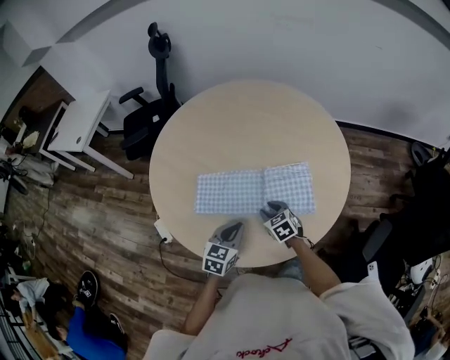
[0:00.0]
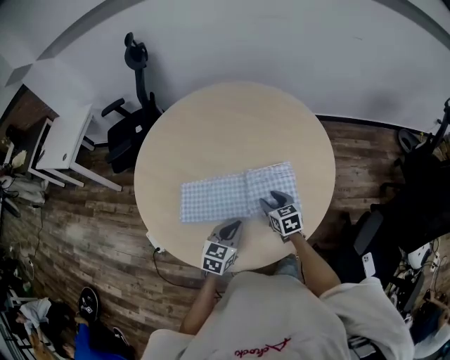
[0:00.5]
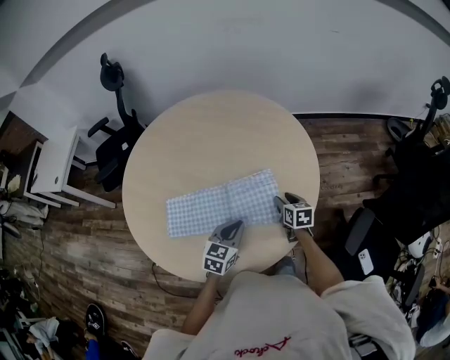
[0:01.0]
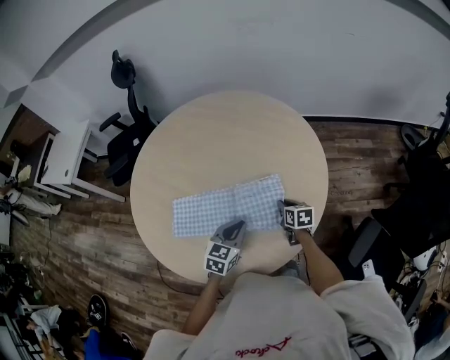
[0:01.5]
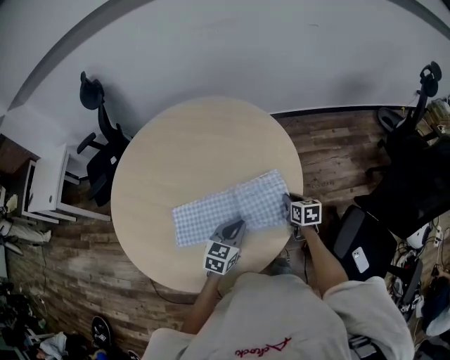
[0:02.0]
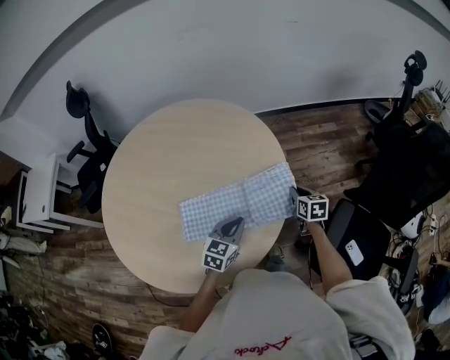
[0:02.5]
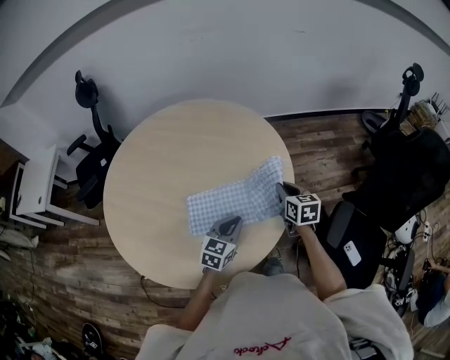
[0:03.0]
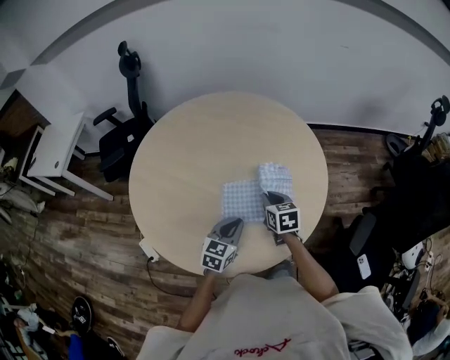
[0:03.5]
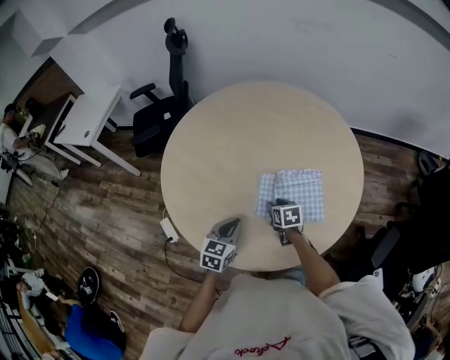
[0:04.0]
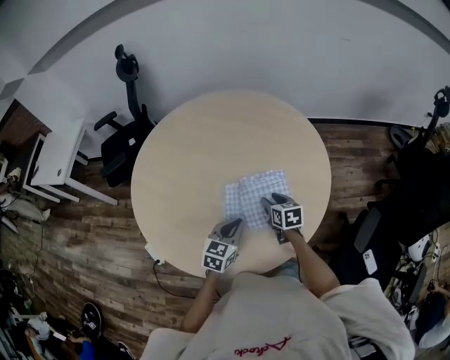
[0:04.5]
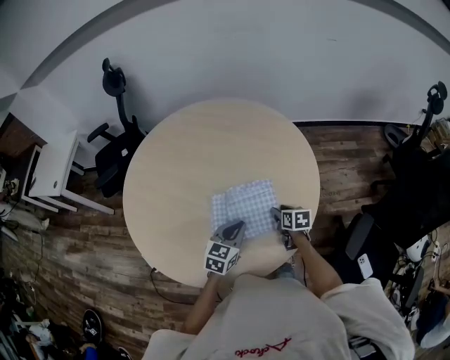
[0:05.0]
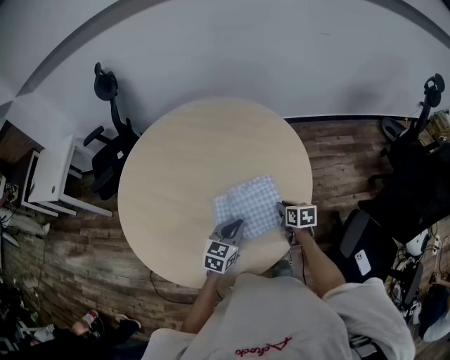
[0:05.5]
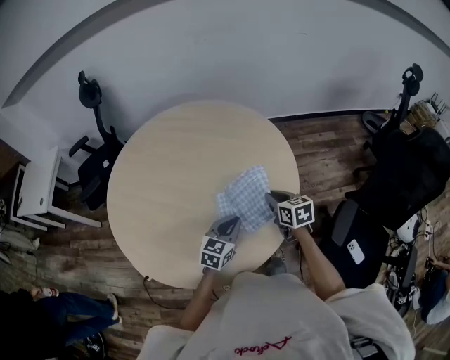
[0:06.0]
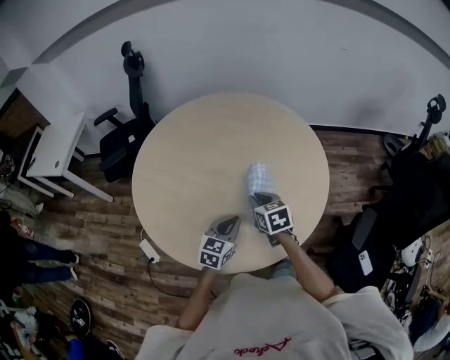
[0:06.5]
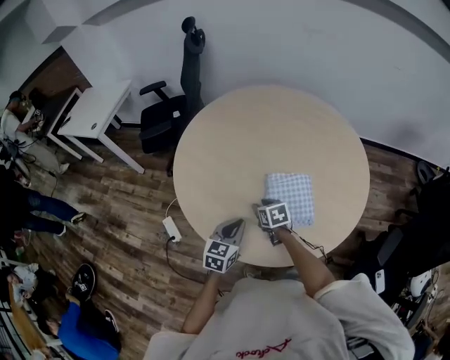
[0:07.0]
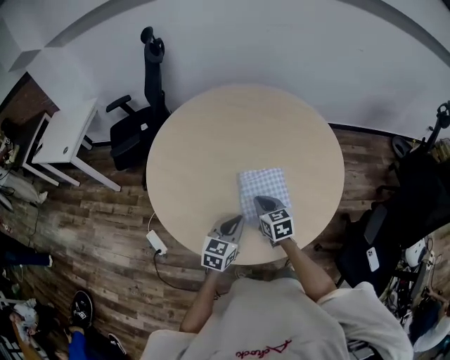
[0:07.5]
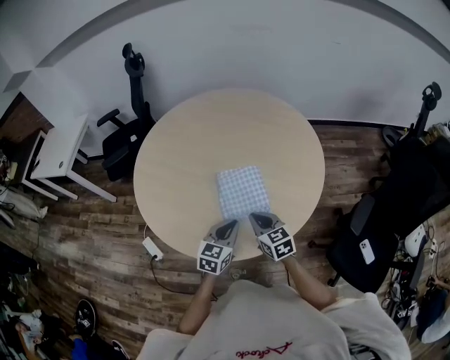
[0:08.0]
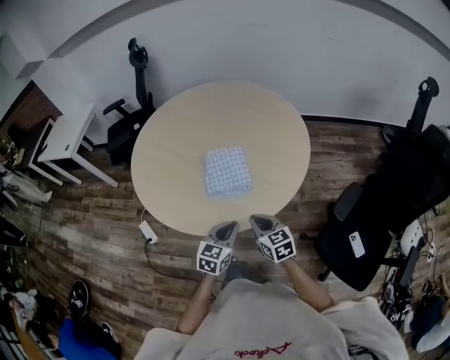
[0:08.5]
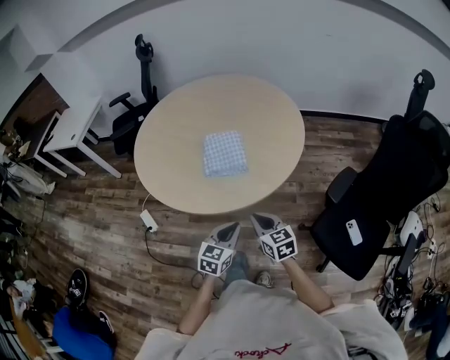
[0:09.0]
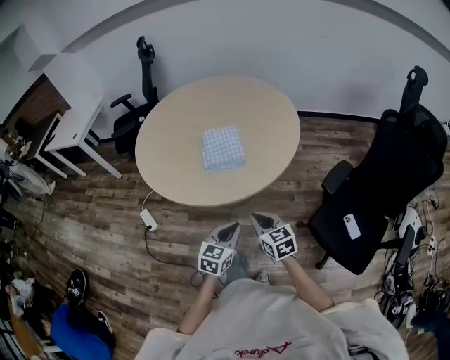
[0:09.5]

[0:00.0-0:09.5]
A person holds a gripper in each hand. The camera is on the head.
0:00.0 to 0:02.0: The left gripper goes about 20 cm to the right and forward. The right gripper is displaced to the right by roughly 30 cm, and rotates around the line of its fingers by approximately 40 degrees, clockwise from behind.
0:02.0 to 0:04.0: The right gripper travels upward and back again, about 10 cm each way, turns by about 20 degrees, and opens, while the left gripper moves approximately 25 cm.
0:04.0 to 0:05.5: Both grippers travel together to the right, approximately 20 cm. The right gripper closes.
0:05.5 to 0:07.5: The left gripper travels to the left and backward by approximately 20 cm. Meanwhile the right gripper shifts about 30 cm to the left, rotates roughly 30 degrees, and opens, then closes once more.
0:07.5 to 0:09.5: Both grippers move backward and to the right, roughly 35 cm.

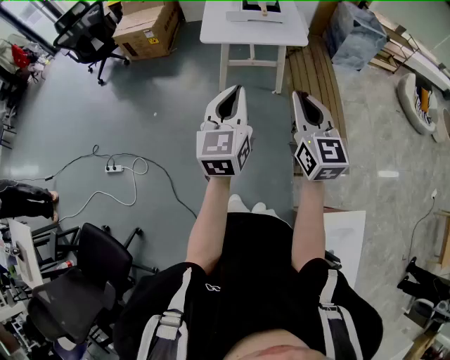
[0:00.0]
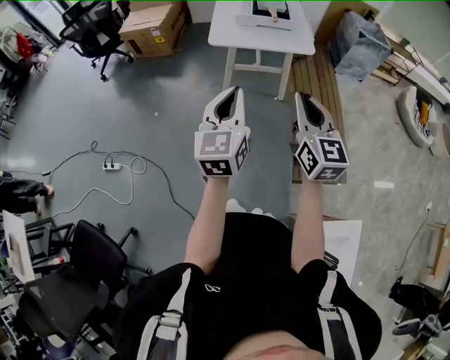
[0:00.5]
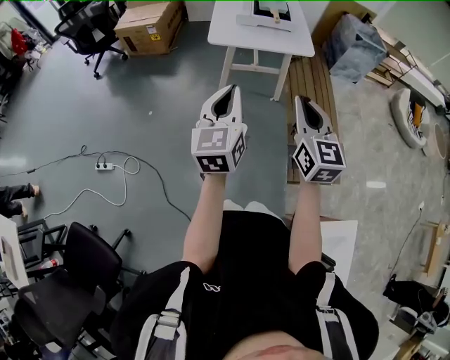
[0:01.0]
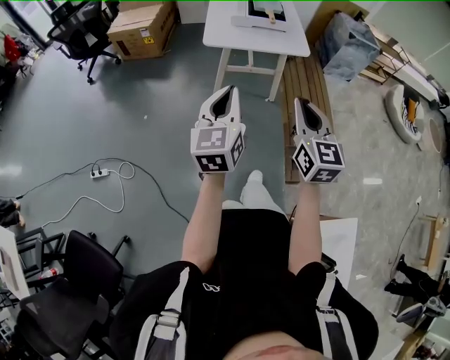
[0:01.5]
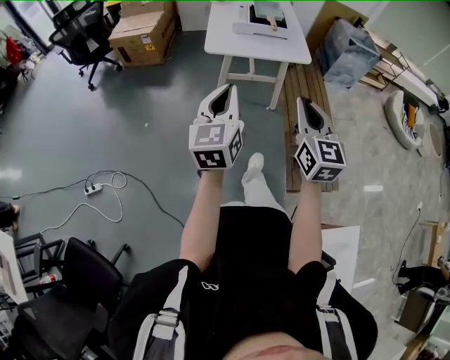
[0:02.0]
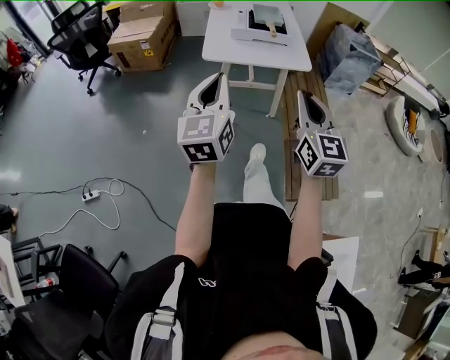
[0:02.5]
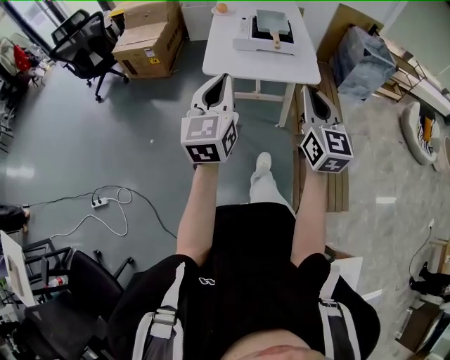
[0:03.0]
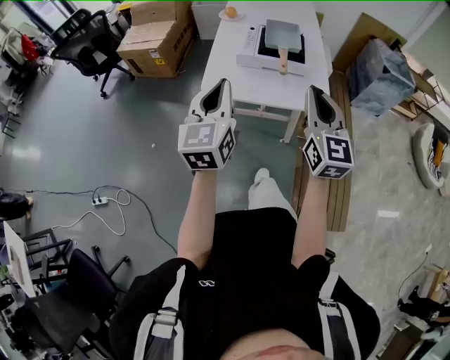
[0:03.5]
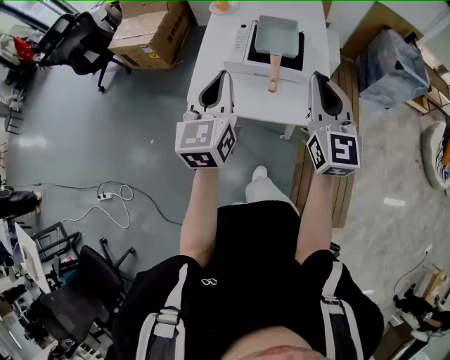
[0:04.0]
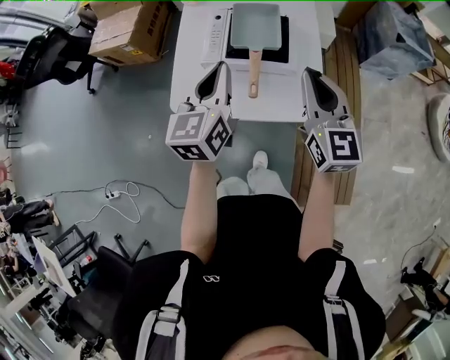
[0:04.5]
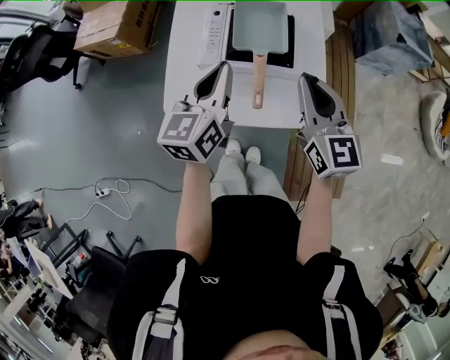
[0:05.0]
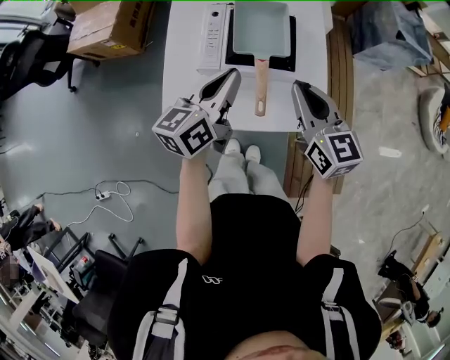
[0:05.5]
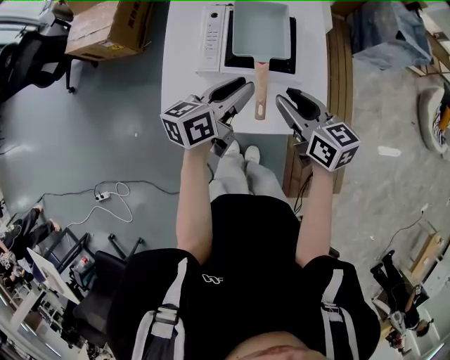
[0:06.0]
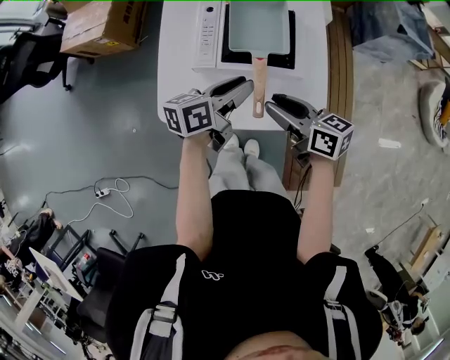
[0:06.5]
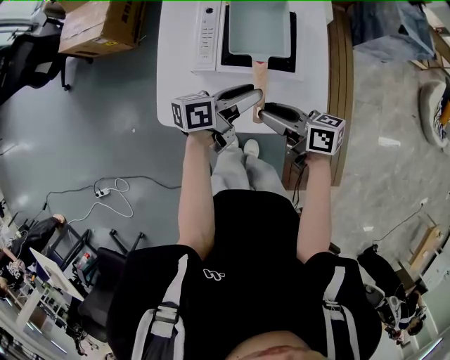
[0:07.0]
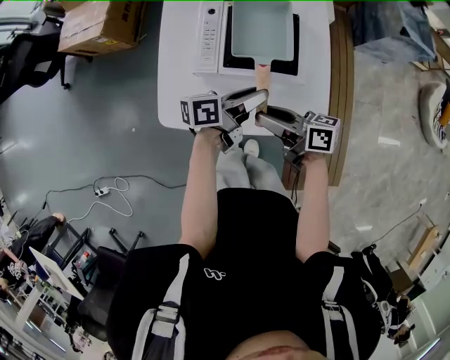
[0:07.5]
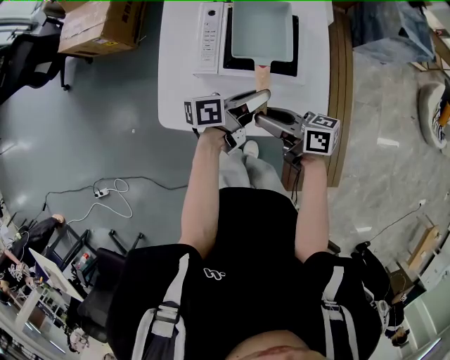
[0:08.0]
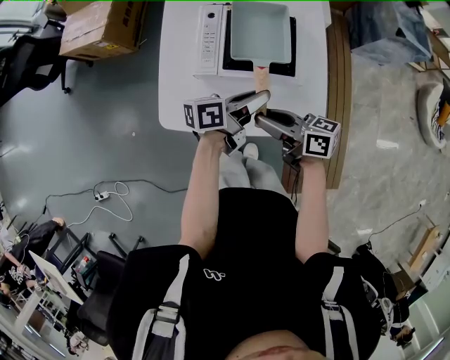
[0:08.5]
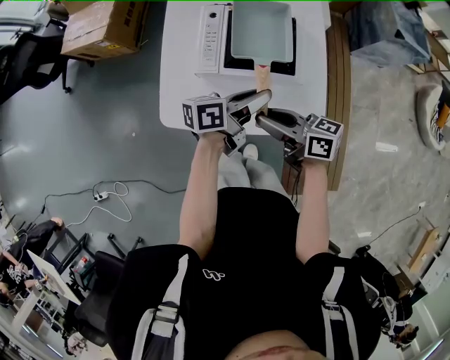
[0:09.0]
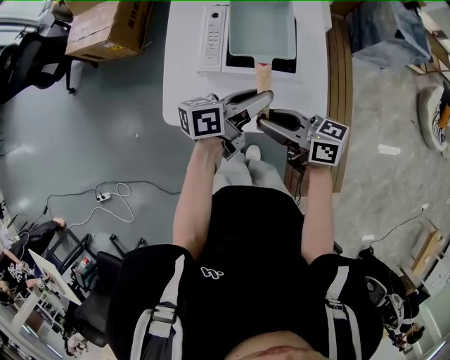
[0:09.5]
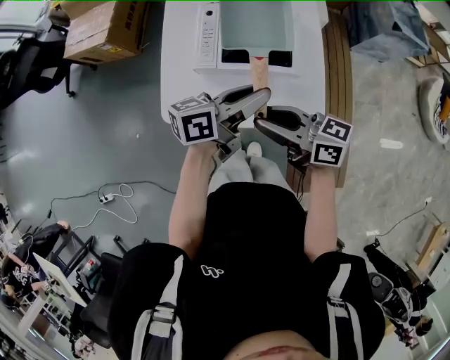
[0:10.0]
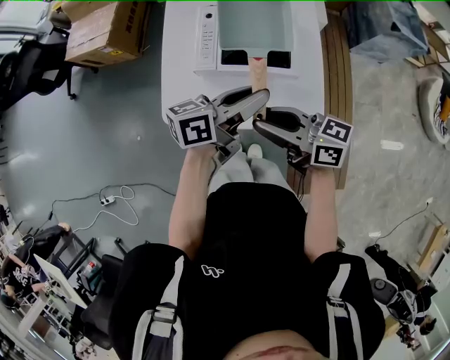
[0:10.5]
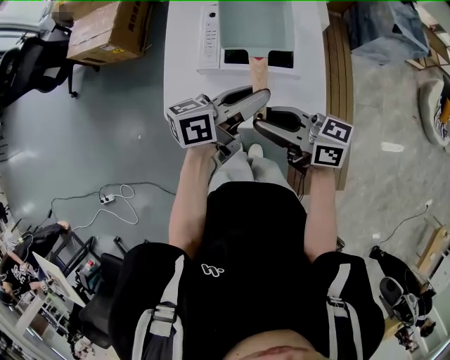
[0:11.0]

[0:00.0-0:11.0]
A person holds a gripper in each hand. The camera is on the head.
0:00.0 to 0:02.0: The left gripper travels to the left and forward by some 10 cm; the right gripper moves forward, roughly 5 cm.
0:02.0 to 0:03.5: Both grippers travel together forward, about 35 cm.
0:03.5 to 0:05.5: The right gripper moves forward and downward, roughly 30 cm, and rotates about 30 degrees, while the left gripper heads forward, covering some 30 cm, and turns by roughly 40 degrees.
0:05.5 to 0:07.5: The left gripper moves downward and to the right, about 15 cm, turns by about 40 degrees, and opens. Meanwhile the right gripper is displaced downward and to the left by roughly 15 cm, swivels roughly 60 degrees, and opens up.
0:07.5 to 0:09.0: The grippers stay close to where they were, moving slightly.
0:09.0 to 0:11.0: The two grippers go roughly 10 cm upward.

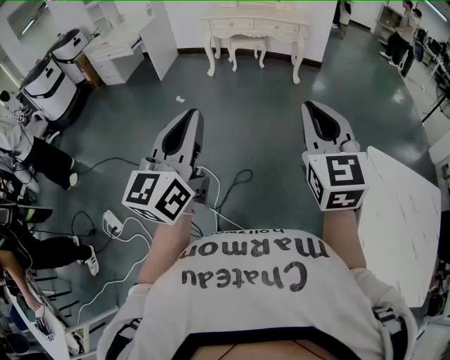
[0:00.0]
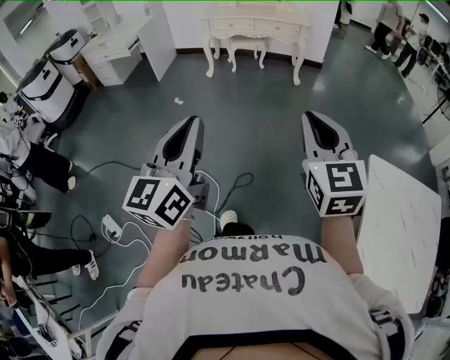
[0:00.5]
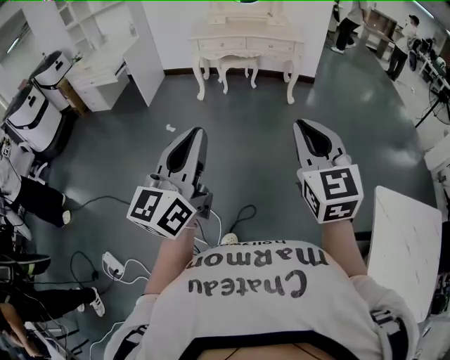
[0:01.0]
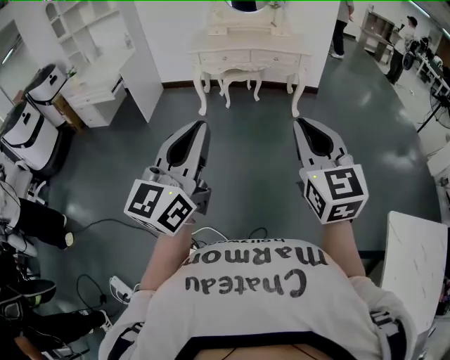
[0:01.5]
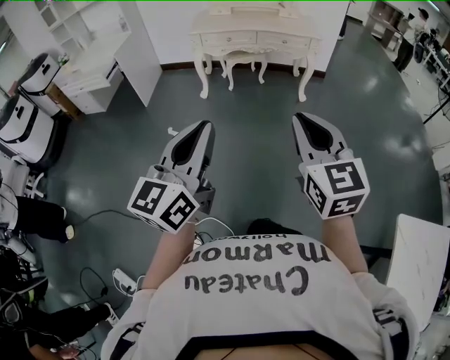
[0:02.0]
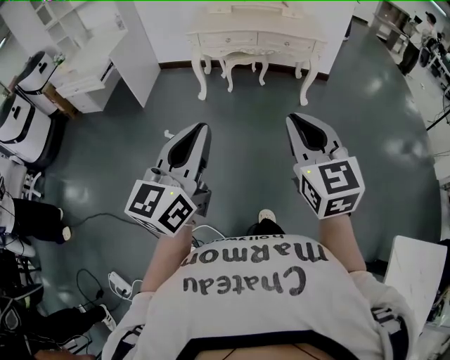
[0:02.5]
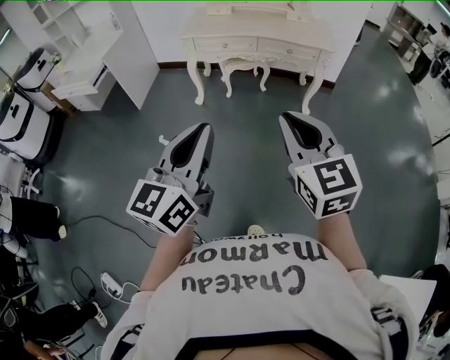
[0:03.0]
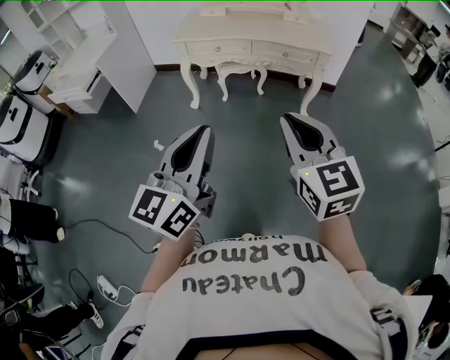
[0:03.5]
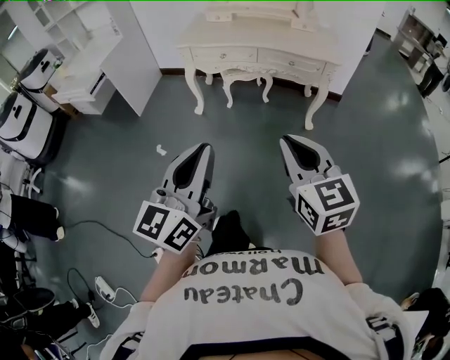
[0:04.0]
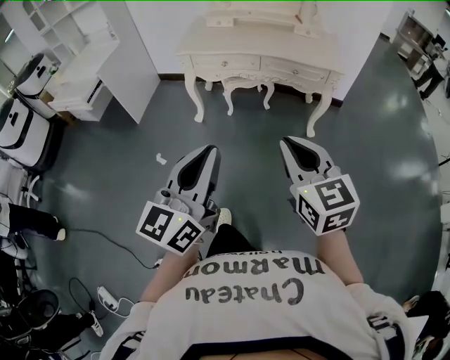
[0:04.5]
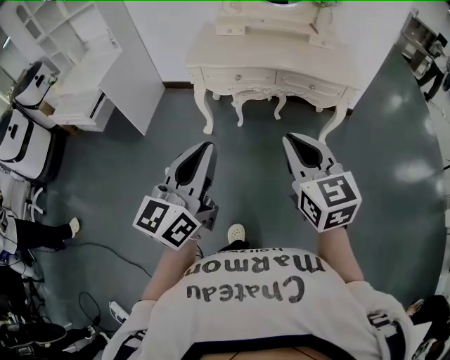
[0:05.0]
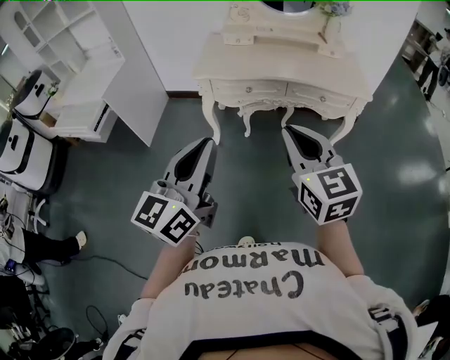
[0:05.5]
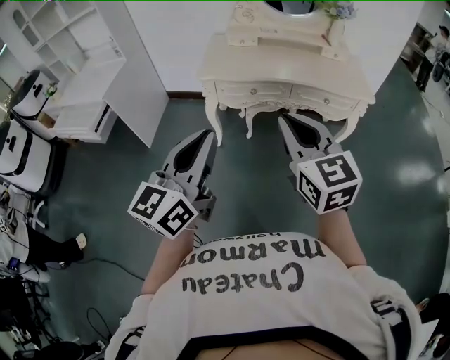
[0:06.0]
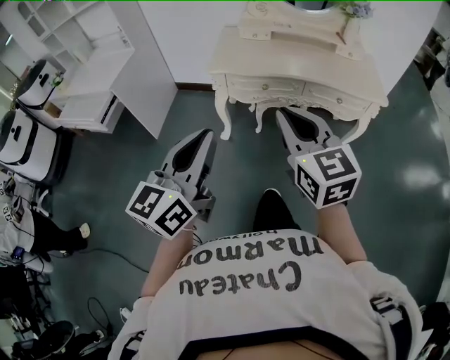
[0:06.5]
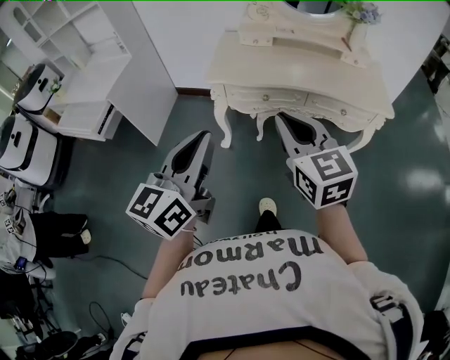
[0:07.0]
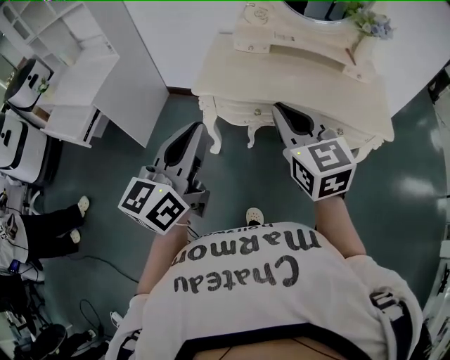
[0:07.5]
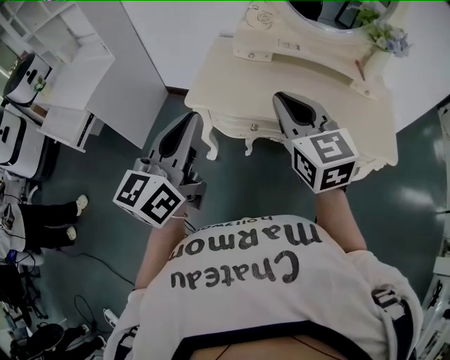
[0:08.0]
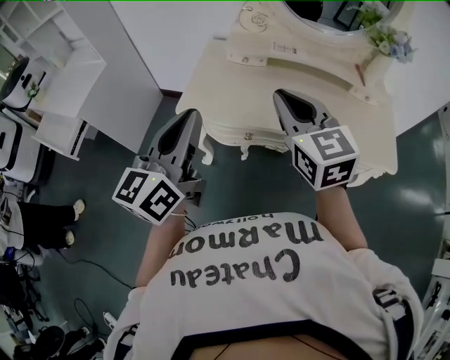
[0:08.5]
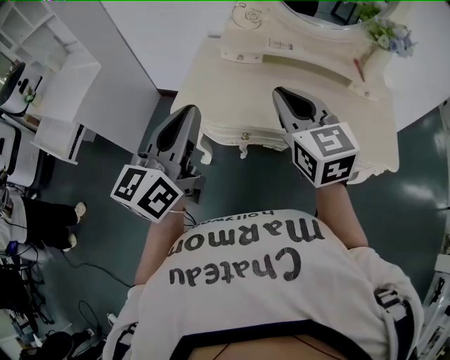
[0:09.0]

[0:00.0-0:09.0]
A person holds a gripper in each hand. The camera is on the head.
0:00.0 to 0:02.0: Both grippers are carried forward and to the left, about 40 cm.
0:02.0 to 0:04.5: The grippers both shift forward by approximately 35 cm.
0:04.5 to 0:07.0: Both grippers move forward and to the left, roughly 35 cm.
0:07.0 to 0:09.0: The grippers both shift forward by roughly 30 cm.
